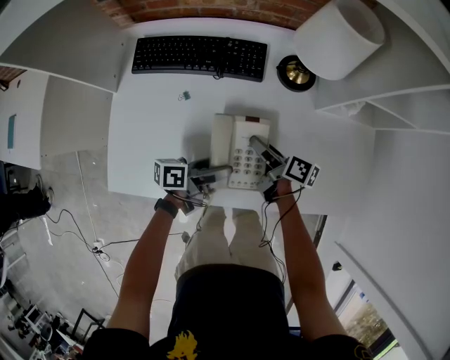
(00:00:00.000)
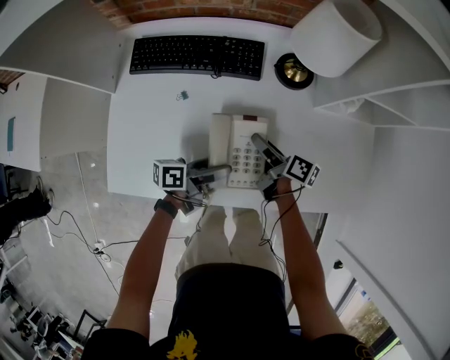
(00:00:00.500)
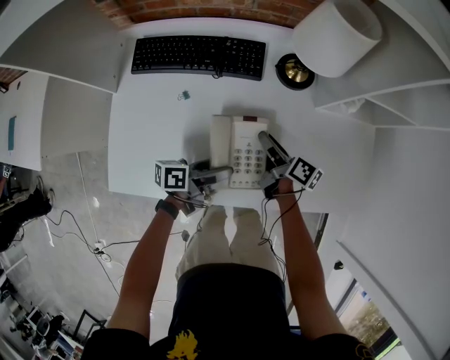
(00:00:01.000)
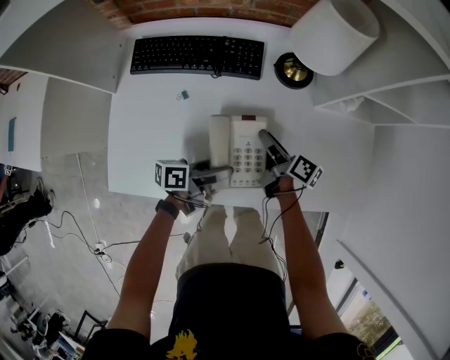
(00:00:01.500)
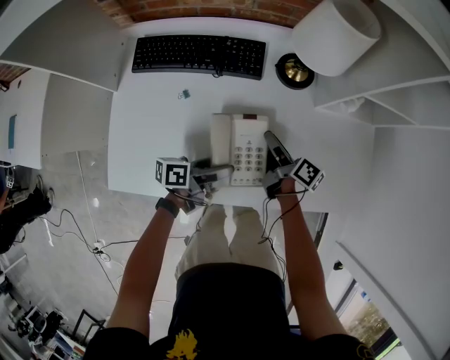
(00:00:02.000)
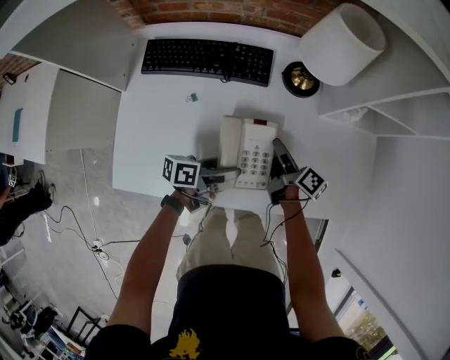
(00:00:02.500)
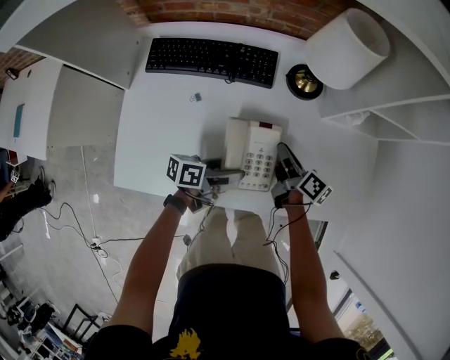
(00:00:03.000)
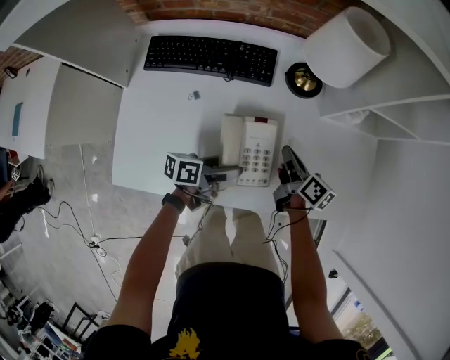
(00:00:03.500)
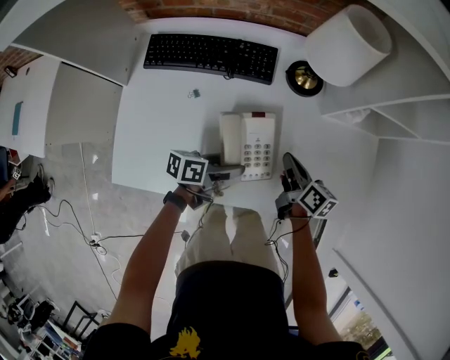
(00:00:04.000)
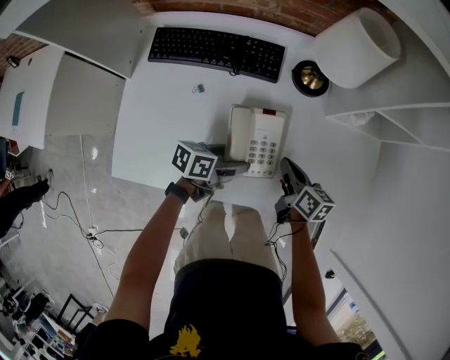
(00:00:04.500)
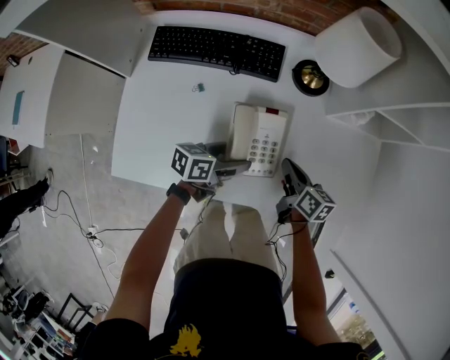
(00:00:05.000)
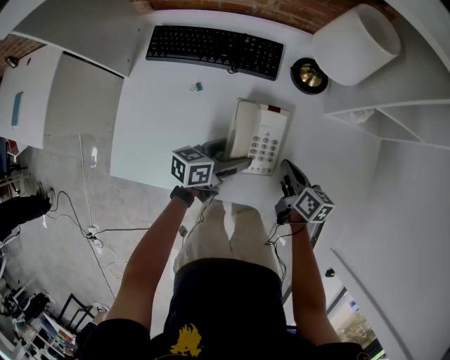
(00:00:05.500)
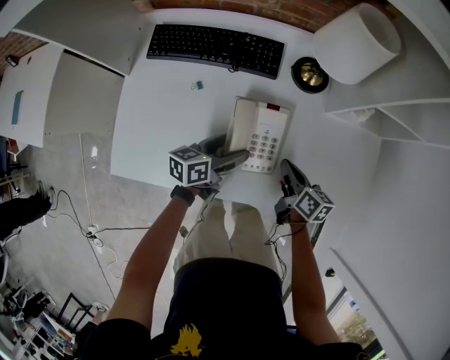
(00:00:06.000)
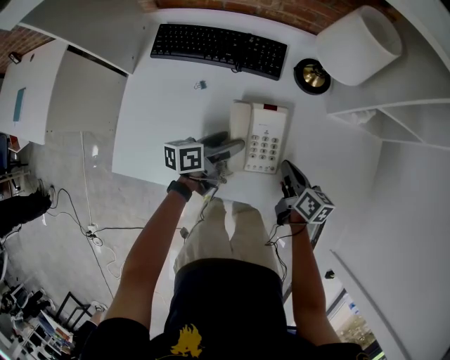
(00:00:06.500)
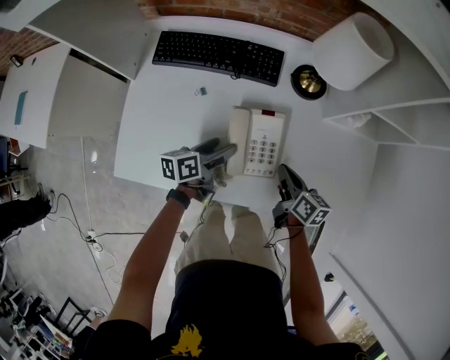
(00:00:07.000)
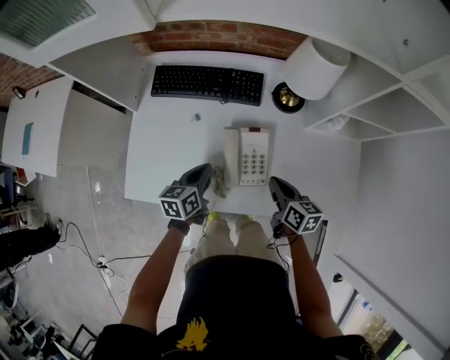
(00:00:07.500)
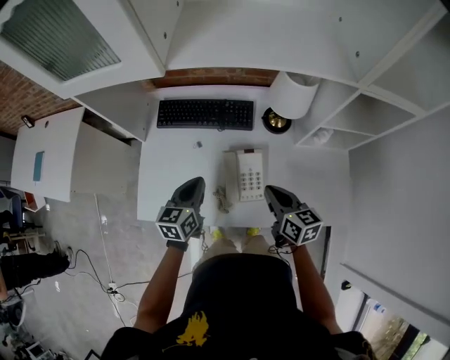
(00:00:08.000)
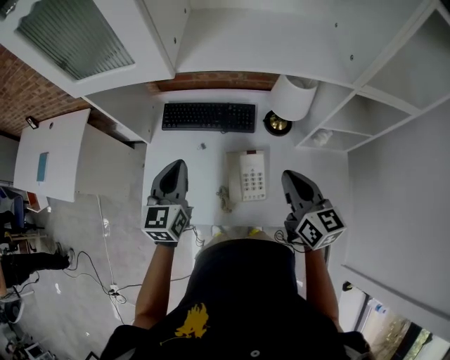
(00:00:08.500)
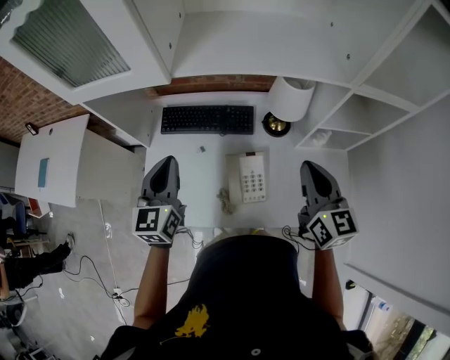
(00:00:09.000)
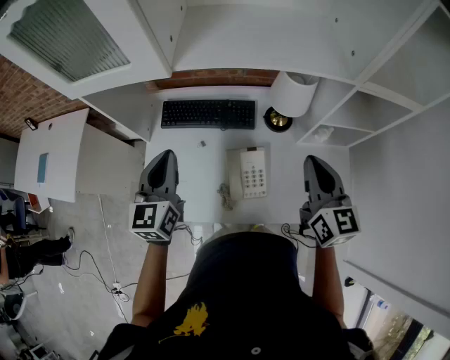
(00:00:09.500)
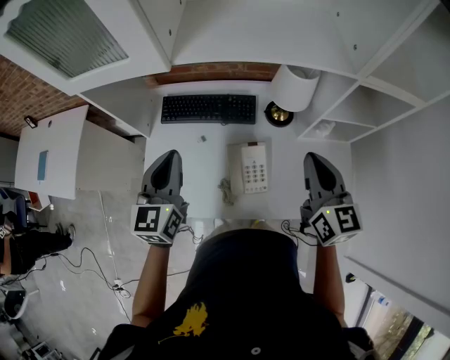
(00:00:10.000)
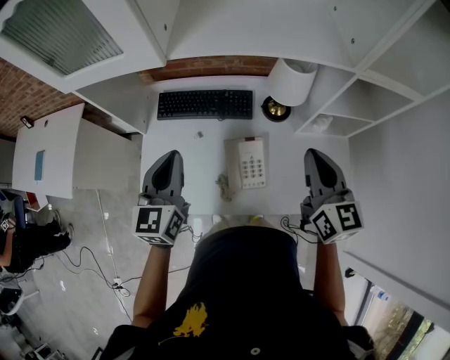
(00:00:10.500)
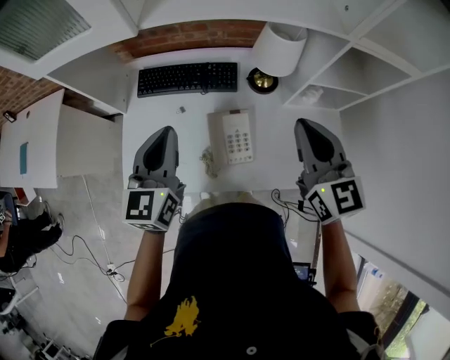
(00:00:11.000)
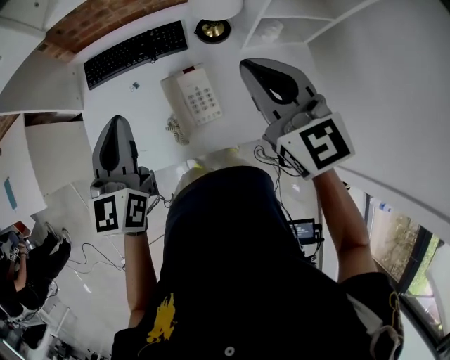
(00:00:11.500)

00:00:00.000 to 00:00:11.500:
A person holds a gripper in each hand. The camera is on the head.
00:00:00.000 to 00:00:02.000: There are only small adjustments of the grippers.
00:00:02.000 to 00:00:04.000: The right gripper ends up some 5 cm from where it was, swivels roughly 20 degrees, and closes up.
00:00:04.000 to 00:00:06.000: The left gripper swivels some 20 degrees.
00:00:06.000 to 00:00:07.500: The left gripper travels to the left and upward by some 10 cm, rotates some 20 degrees, and closes. The right gripper moves upward, some 10 cm.
00:00:07.500 to 00:00:09.500: Both grippers move upward, about 30 cm. The right gripper rotates approximately 40 degrees. Meanwhile the left gripper turns by about 40 degrees.
00:00:09.500 to 00:00:11.500: The left gripper travels to the right and backward by some 10 cm.

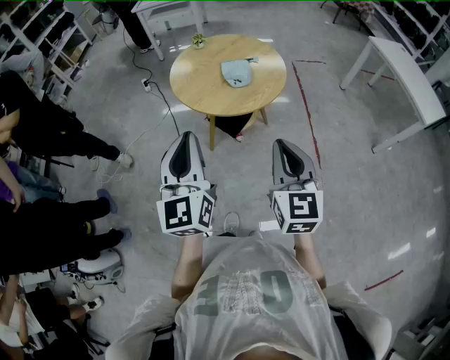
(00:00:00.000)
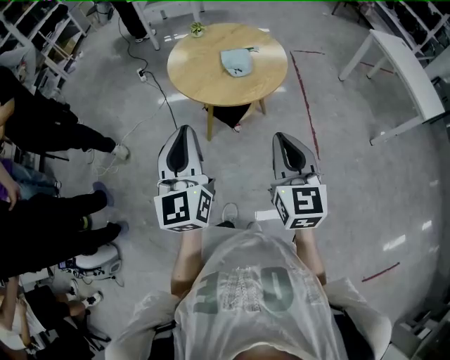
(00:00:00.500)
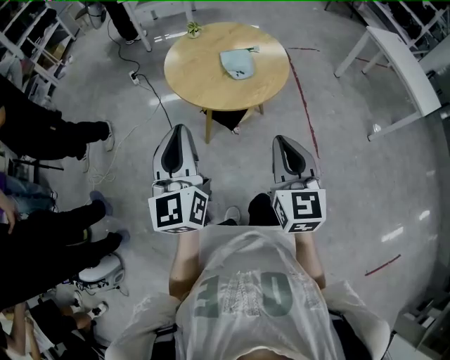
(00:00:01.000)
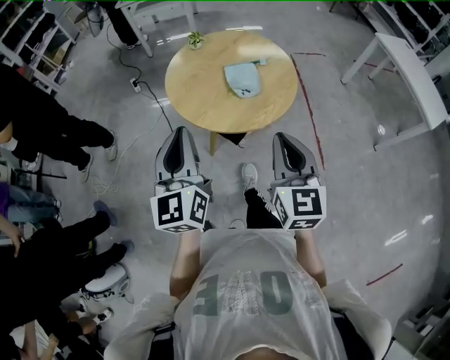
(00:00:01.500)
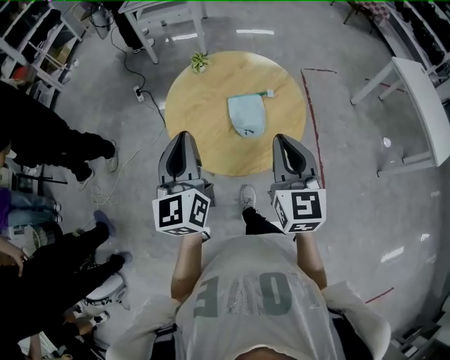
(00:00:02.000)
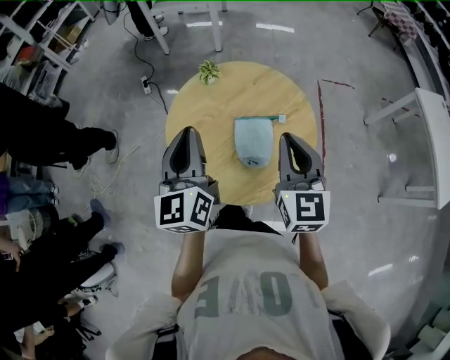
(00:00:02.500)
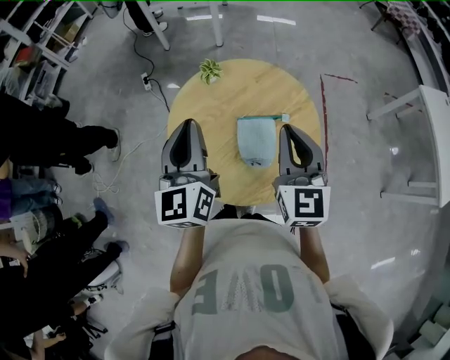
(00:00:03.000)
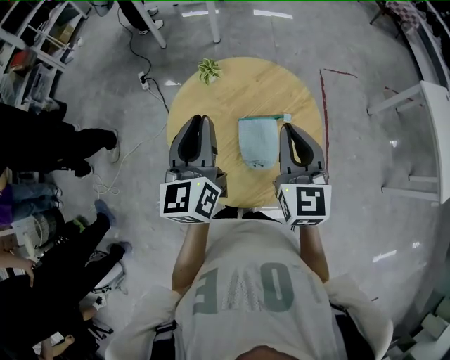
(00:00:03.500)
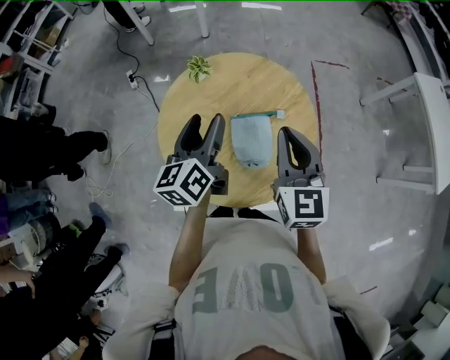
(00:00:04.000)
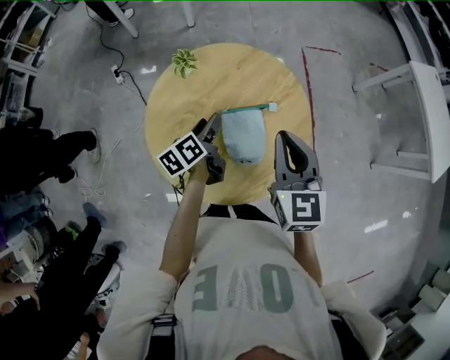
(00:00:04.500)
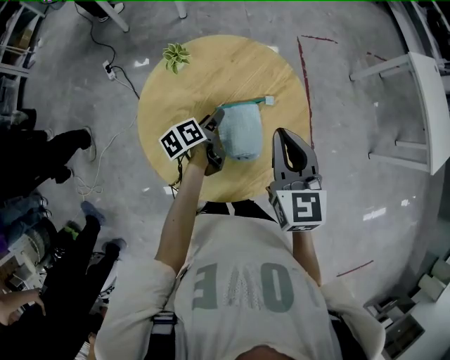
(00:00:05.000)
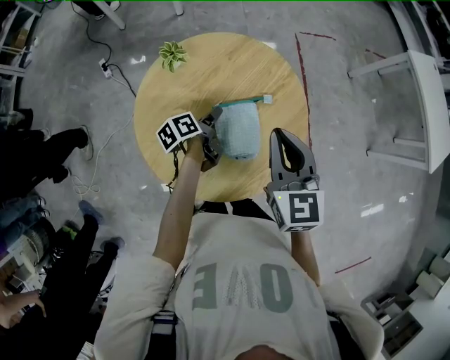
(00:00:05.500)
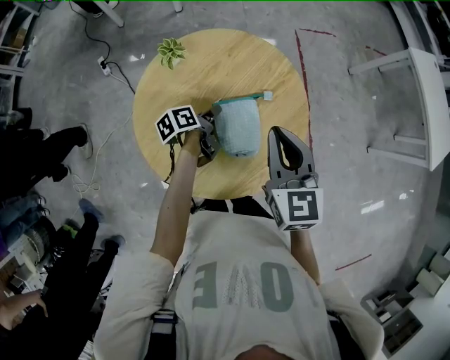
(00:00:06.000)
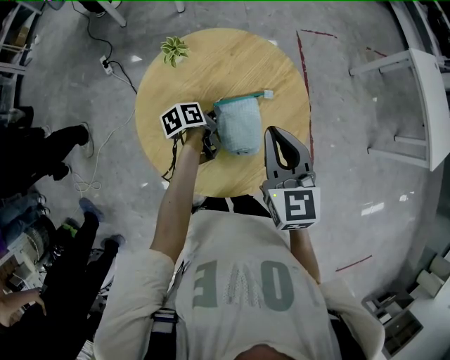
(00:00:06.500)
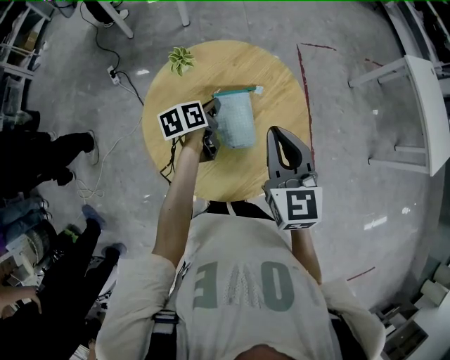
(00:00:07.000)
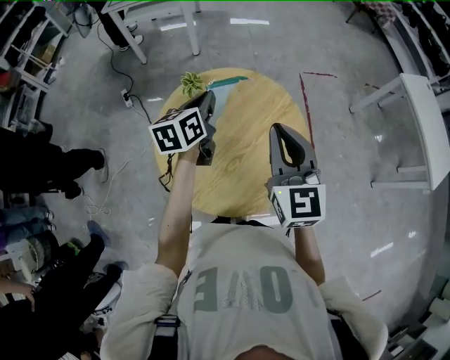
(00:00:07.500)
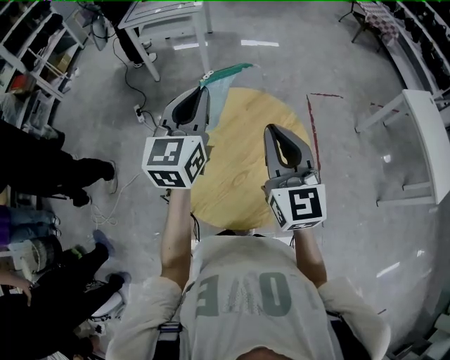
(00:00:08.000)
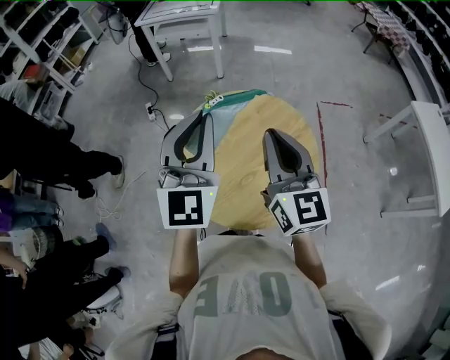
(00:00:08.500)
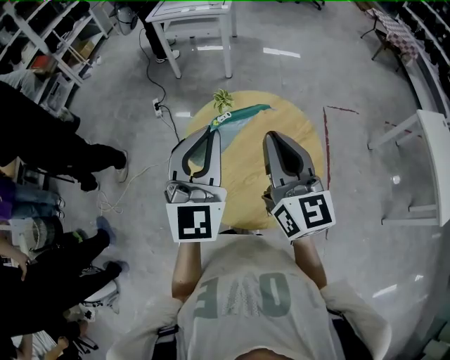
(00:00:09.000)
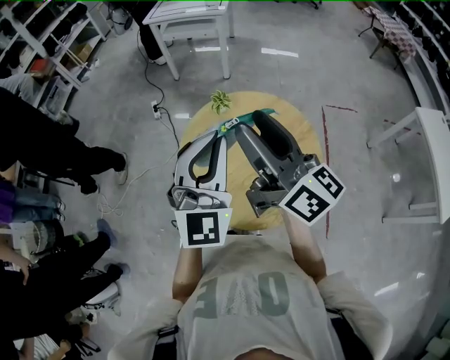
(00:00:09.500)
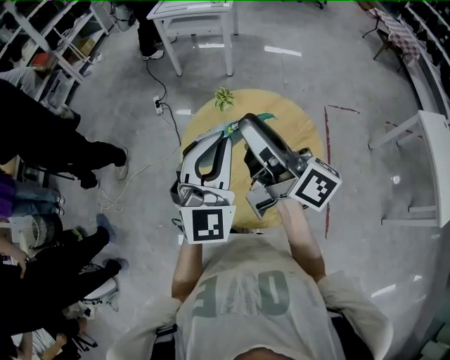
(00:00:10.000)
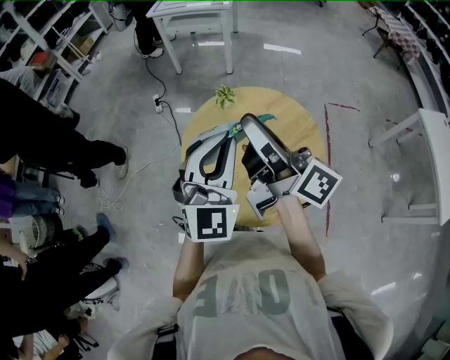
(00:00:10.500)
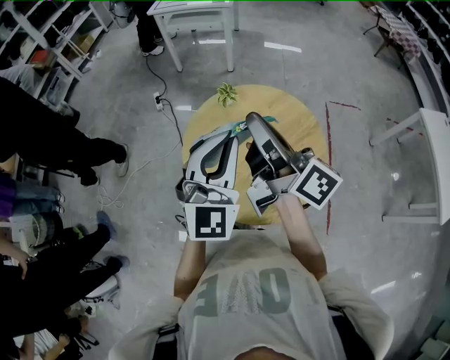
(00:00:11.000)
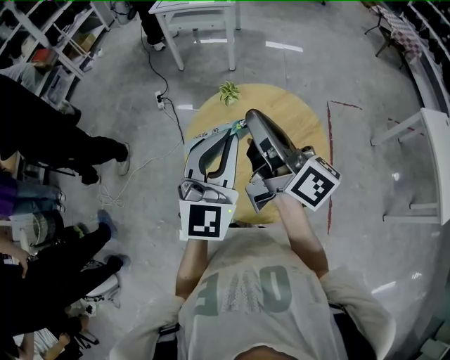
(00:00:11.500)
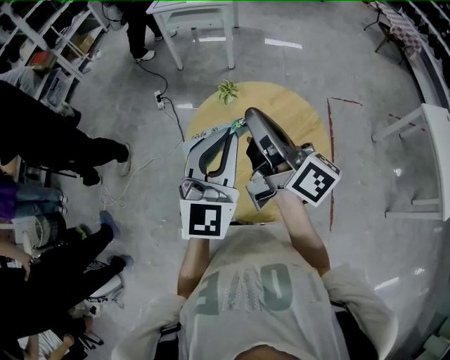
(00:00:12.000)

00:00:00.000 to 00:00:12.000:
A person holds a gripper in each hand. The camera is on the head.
00:00:00.000 to 00:00:02.000: The two grippers go about 30 cm forward.
00:00:02.000 to 00:00:04.000: The right gripper travels forward by approximately 20 cm. Meanwhile the left gripper heads forward and downward, covering roughly 25 cm, rotates approximately 30 degrees, and opens.
00:00:04.000 to 00:00:06.000: The left gripper shifts about 25 cm downward, rotates some 50 degrees, and closes up.
00:00:06.000 to 00:00:08.000: The left gripper shifts some 40 cm upward, rolls clockwise, seen from behind, by about 70 degrees, and closes its fingers, while the right gripper goes approximately 15 cm upward, and swivels approximately 20 degrees.
00:00:08.000 to 00:00:10.000: The right gripper goes approximately 10 cm to the left, rotates around the line of its fingers by roughly 60 degrees, clockwise from behind, and opens its fingers. The left gripper moves backward, some 10 cm, and turns by roughly 30 degrees.
00:00:10.000 to 00:00:12.000: The right gripper closes up.

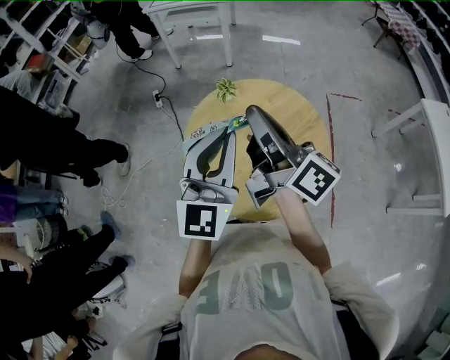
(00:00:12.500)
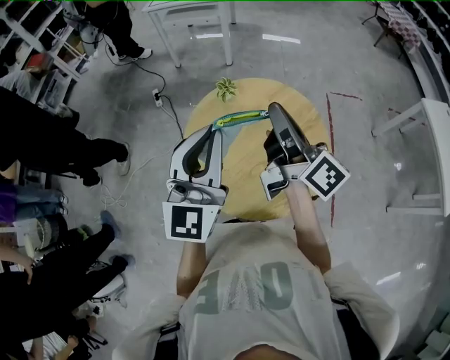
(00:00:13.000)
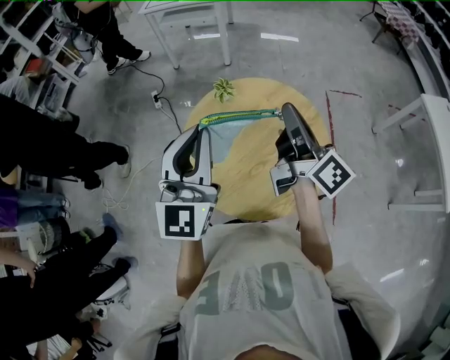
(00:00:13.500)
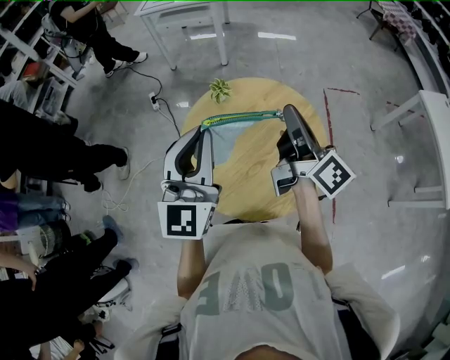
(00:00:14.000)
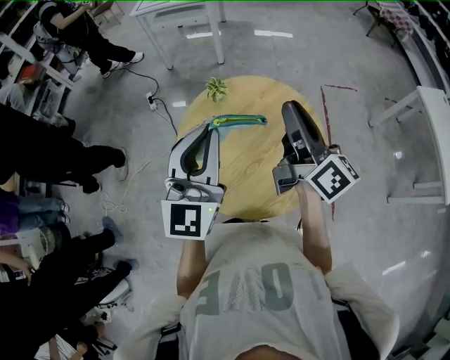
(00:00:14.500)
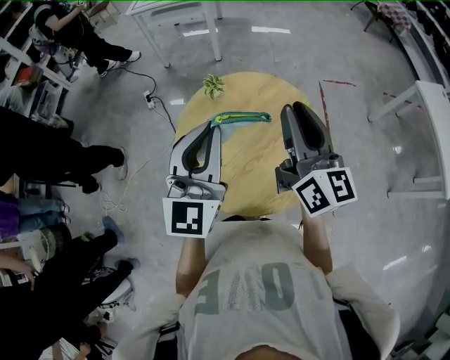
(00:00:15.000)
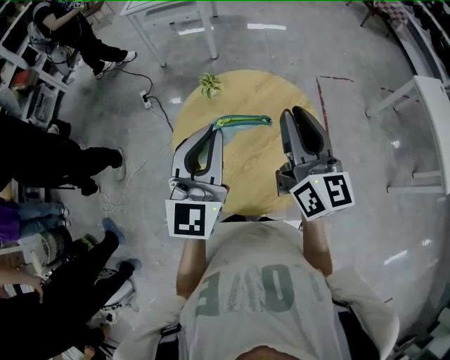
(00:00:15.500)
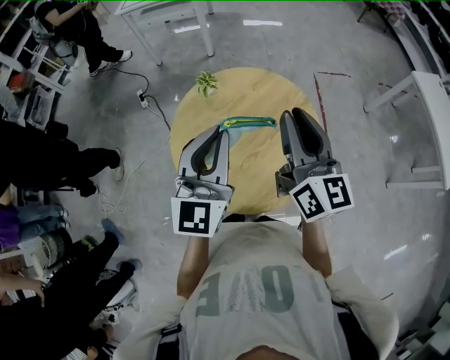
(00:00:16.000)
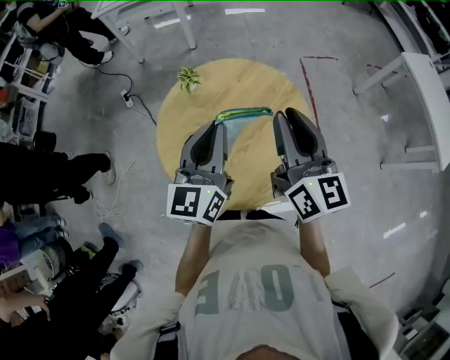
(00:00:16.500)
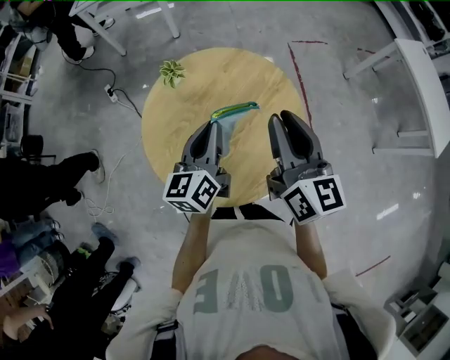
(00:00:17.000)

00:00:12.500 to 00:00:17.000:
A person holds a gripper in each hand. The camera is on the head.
00:00:12.500 to 00:00:14.500: The right gripper shifts roughly 10 cm to the right.
00:00:14.500 to 00:00:17.000: The left gripper goes about 20 cm downward, and rotates around the line of its fingers by some 40 degrees, counterclockwise from behind, while the right gripper shifts some 5 cm downward, and rotates some 30 degrees.
